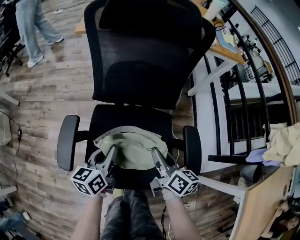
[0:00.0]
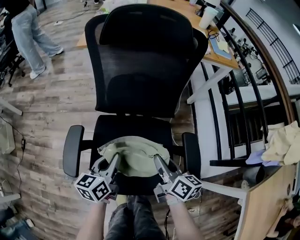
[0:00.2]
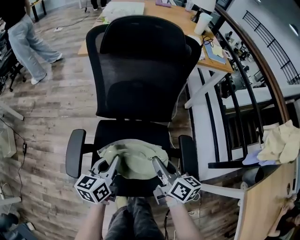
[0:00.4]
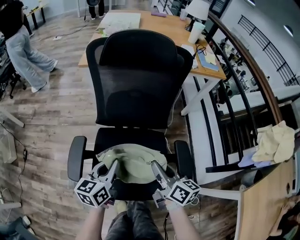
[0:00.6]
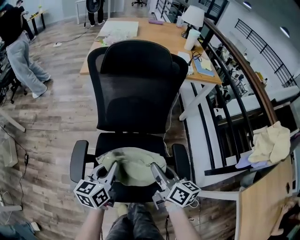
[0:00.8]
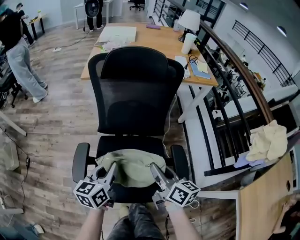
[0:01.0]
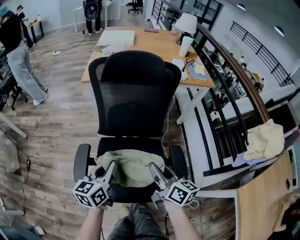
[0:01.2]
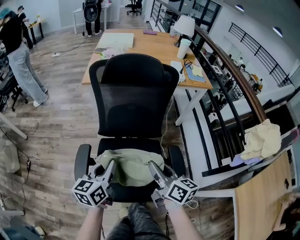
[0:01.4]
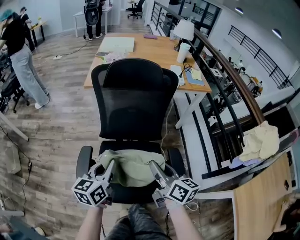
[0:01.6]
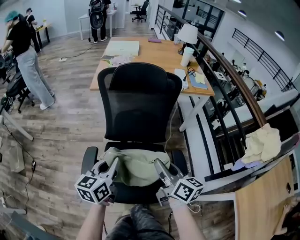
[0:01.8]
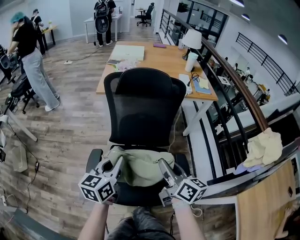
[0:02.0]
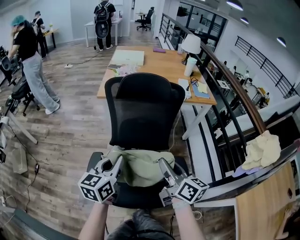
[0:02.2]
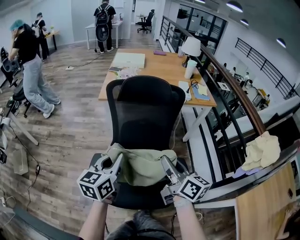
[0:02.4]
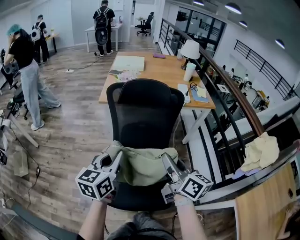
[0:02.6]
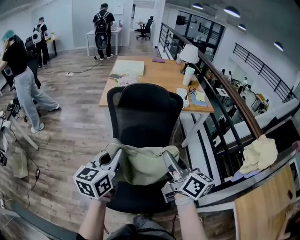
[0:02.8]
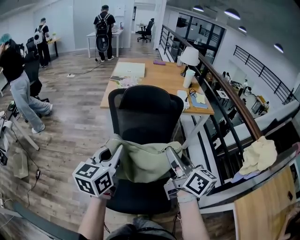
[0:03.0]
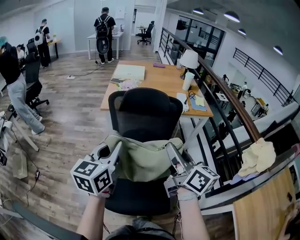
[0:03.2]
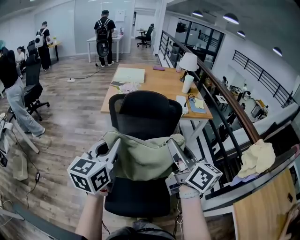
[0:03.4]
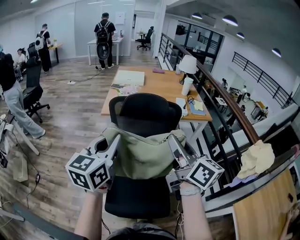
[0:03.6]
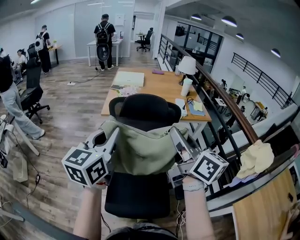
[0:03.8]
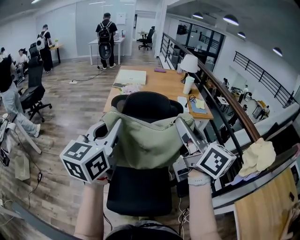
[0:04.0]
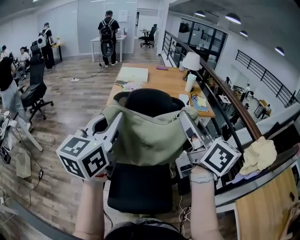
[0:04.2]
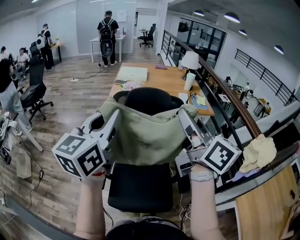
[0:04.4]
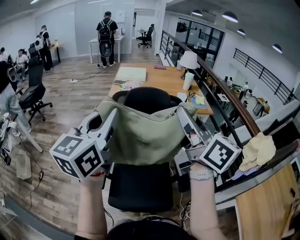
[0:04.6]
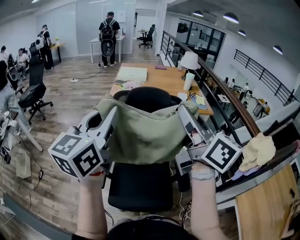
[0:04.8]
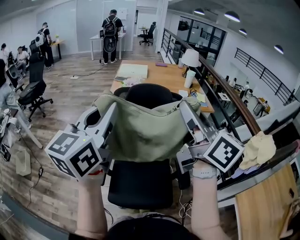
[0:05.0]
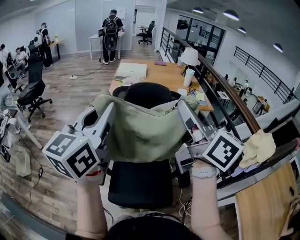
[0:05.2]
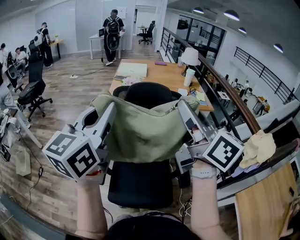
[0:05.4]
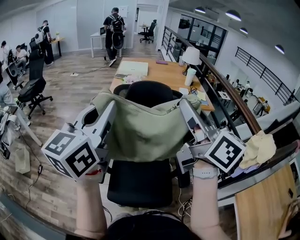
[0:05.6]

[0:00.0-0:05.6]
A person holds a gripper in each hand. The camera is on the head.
0:00.0 to 0:01.4: The two grippers go some 20 cm upward.
0:01.4 to 0:02.8: Both grippers move upward, about 15 cm.
0:02.8 to 0:04.2: Both grippers travel together upward, approximately 20 cm.
0:04.2 to 0:05.6: The grippers stay close to where they were, moving slightly.

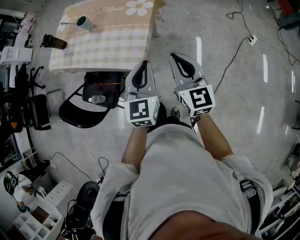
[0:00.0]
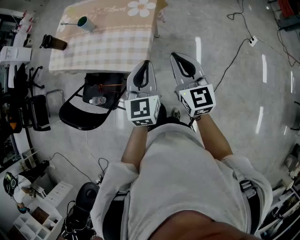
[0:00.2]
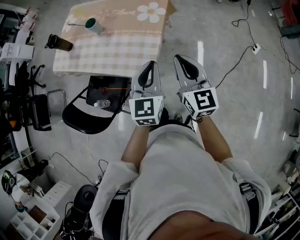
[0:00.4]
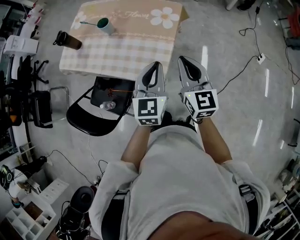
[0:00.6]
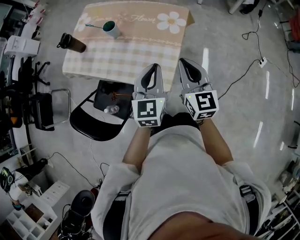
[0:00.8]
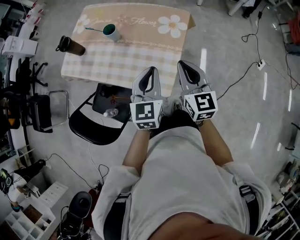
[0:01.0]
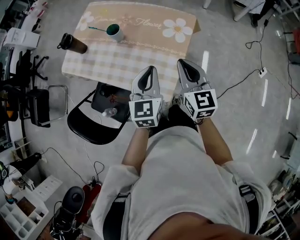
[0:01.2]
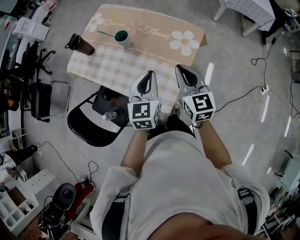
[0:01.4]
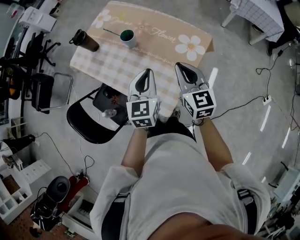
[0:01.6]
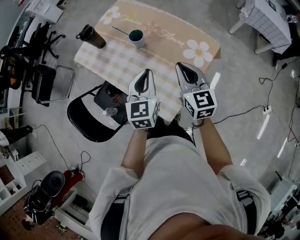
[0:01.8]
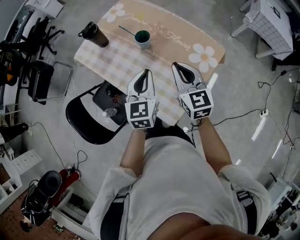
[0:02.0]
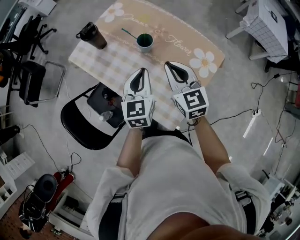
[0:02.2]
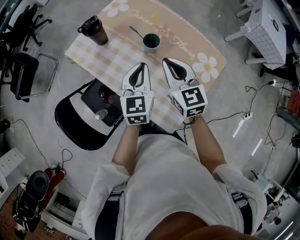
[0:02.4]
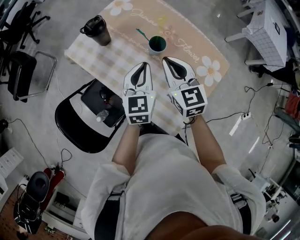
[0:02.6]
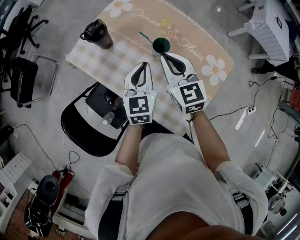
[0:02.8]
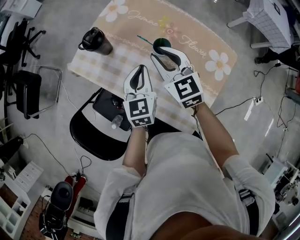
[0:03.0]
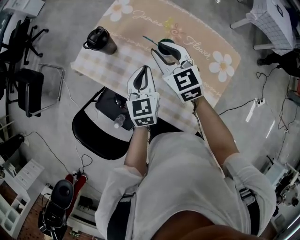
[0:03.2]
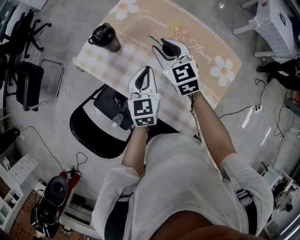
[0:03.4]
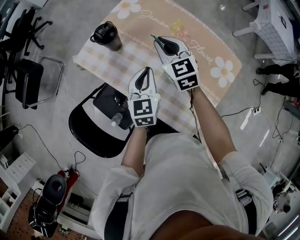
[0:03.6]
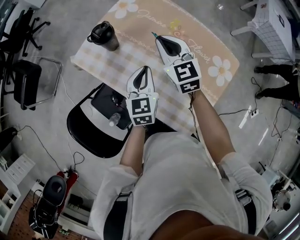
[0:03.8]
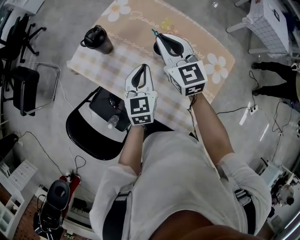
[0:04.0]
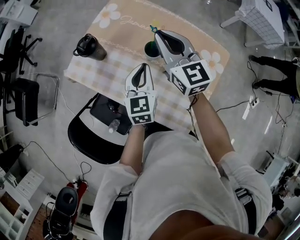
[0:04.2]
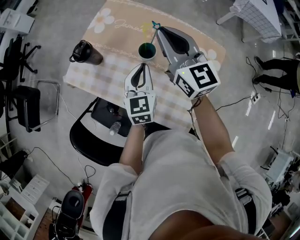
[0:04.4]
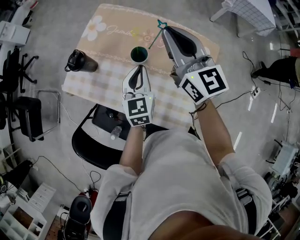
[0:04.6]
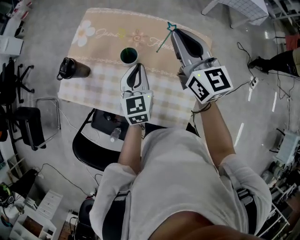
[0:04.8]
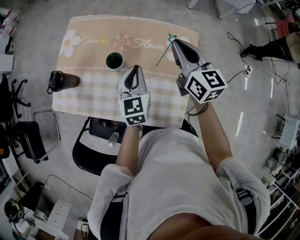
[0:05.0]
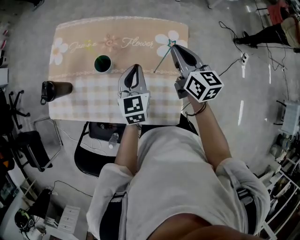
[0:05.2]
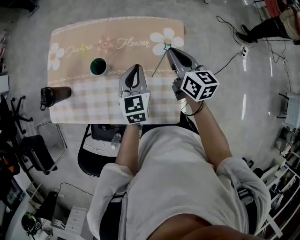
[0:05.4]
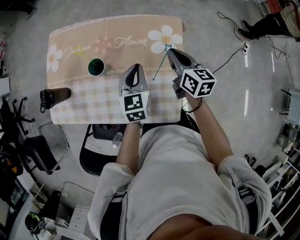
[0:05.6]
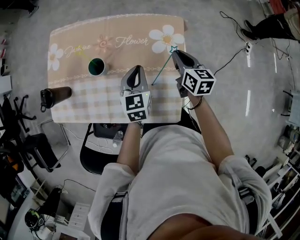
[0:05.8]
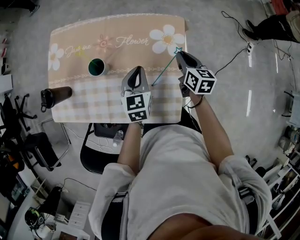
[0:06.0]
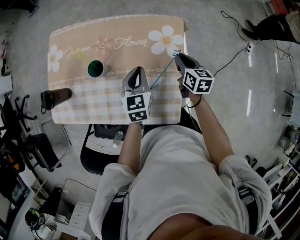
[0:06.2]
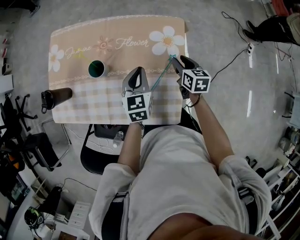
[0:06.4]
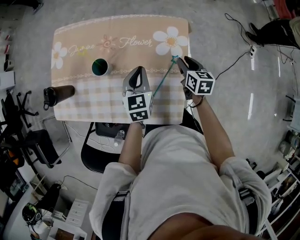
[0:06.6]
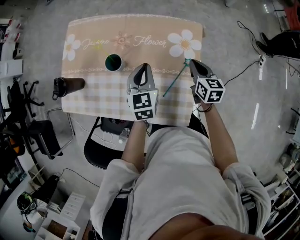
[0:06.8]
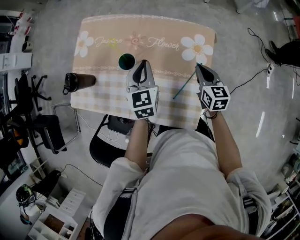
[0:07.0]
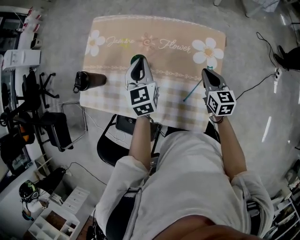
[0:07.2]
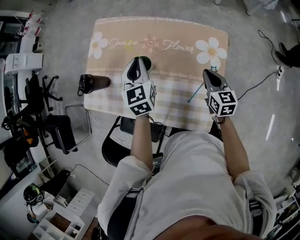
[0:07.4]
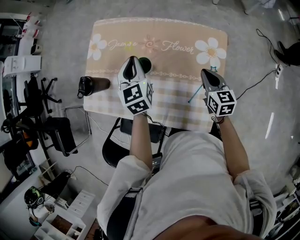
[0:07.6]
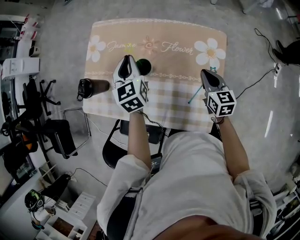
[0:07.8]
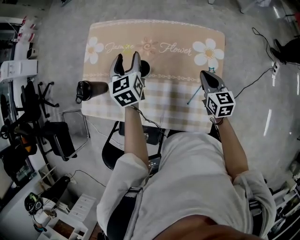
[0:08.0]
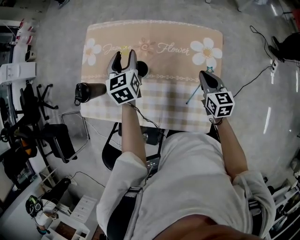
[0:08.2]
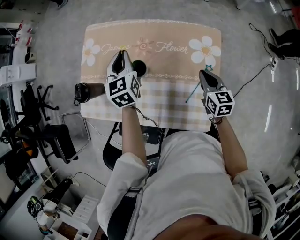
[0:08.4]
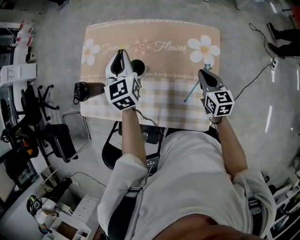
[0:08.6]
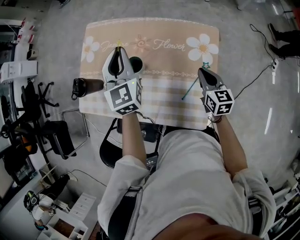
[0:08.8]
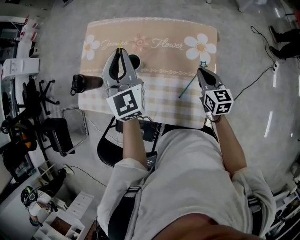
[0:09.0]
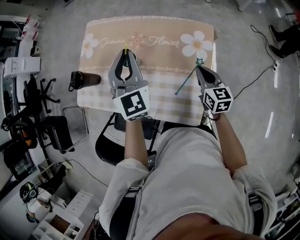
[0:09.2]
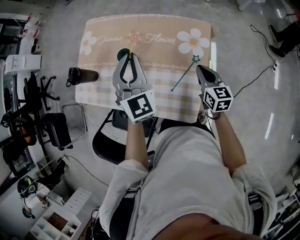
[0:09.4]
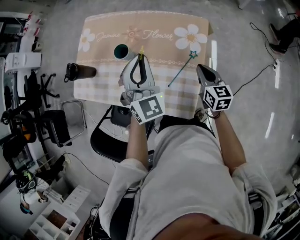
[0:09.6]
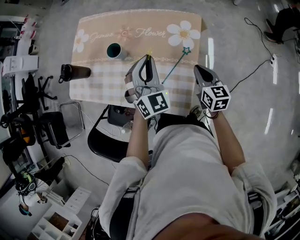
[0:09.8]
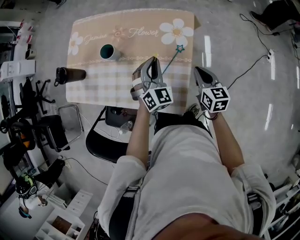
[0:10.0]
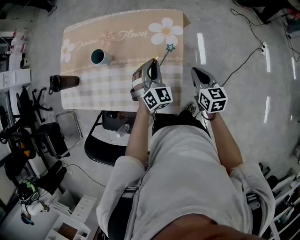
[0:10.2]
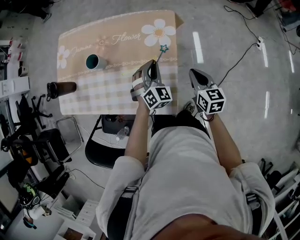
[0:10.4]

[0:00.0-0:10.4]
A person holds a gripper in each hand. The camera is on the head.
0:00.0 to 0:01.4: The grippers both shift forward and to the left by some 25 cm.
0:01.4 to 0:03.0: The two grippers go about 35 cm forward and to the left. The right gripper turns by approximately 20 degrees, and opens its fingers.
0:03.0 to 0:04.4: The left gripper heads to the right, covering some 5 cm. The right gripper moves upward and to the right, about 15 cm, and swivels approximately 30 degrees.
0:04.4 to 0:06.0: The right gripper moves some 40 cm, and tips its fingers downward by roughly 30 degrees, while the left gripper moves roughly 20 cm, and turns by approximately 30 degrees.
0:06.0 to 0:07.4: The left gripper goes roughly 20 cm to the left, forward and upward, and swivels some 20 degrees. The right gripper is displaced to the left by some 10 cm, and opens, then closes again.
0:07.4 to 0:09.0: The left gripper travels upward by about 10 cm, rotates about 20 degrees, and opens and closes again.
0:09.0 to 0:10.4: The left gripper is displaced to the right, downward and backward by about 35 cm, and turns by about 40 degrees; the right gripper shifts some 20 cm backward and to the right.

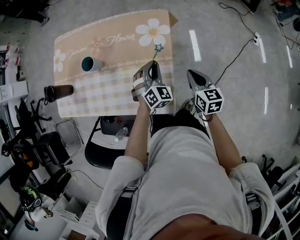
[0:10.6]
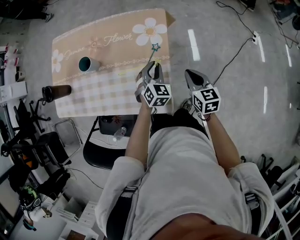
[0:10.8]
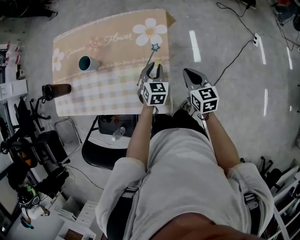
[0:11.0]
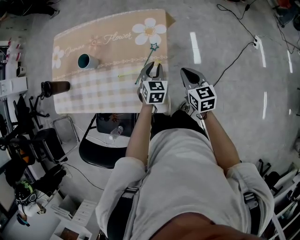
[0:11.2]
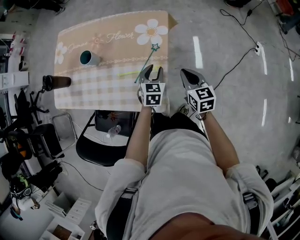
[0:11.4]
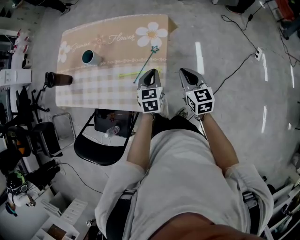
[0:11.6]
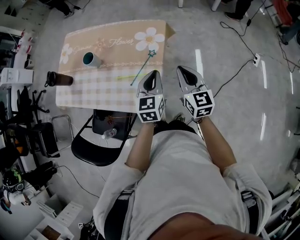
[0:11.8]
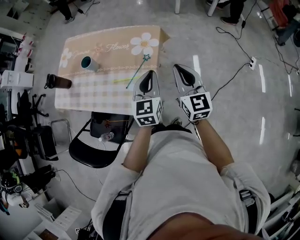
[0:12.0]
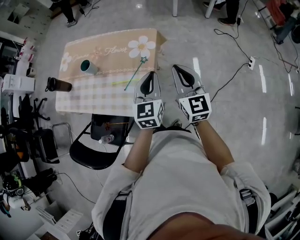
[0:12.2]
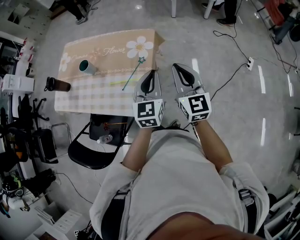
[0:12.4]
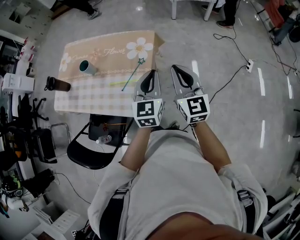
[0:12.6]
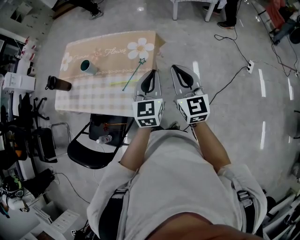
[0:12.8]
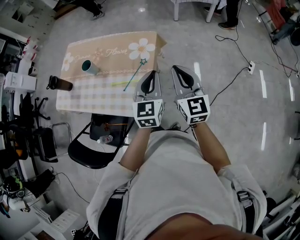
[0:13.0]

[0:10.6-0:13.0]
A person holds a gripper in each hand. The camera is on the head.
0:10.6 to 0:11.8: The left gripper is displaced upward, backward and to the right by some 15 cm, rotates around the line of its fingers by roughly 50 degrees, counterclockwise from behind, and opens, then closes again. The right gripper travels upward by about 10 cm, and turns by some 20 degrees.
0:11.8 to 0:13.0: The right gripper goes approximately 10 cm upward. The left gripper goes some 10 cm upward and to the right.

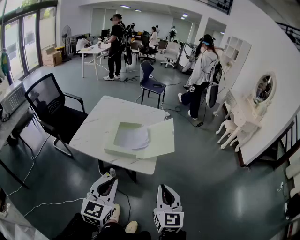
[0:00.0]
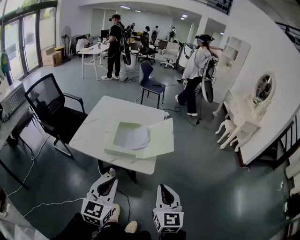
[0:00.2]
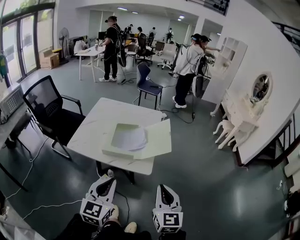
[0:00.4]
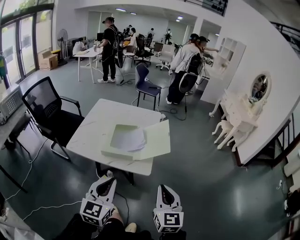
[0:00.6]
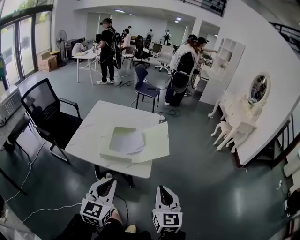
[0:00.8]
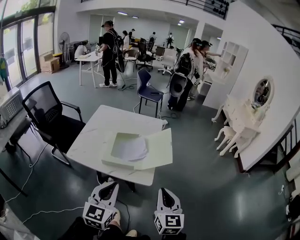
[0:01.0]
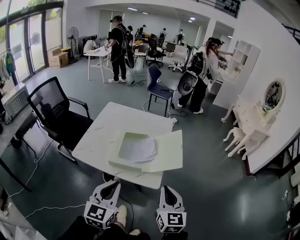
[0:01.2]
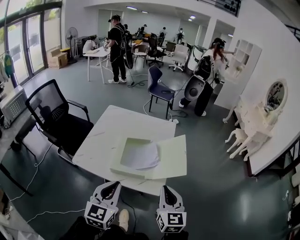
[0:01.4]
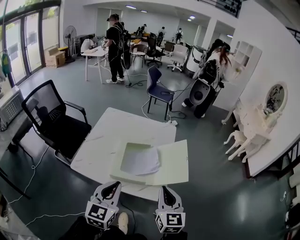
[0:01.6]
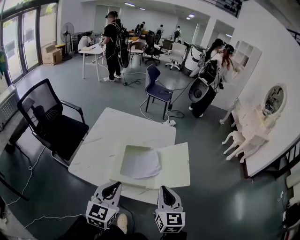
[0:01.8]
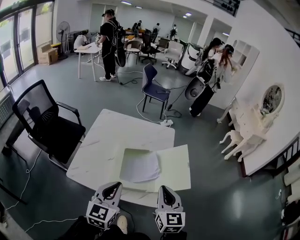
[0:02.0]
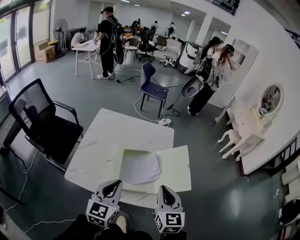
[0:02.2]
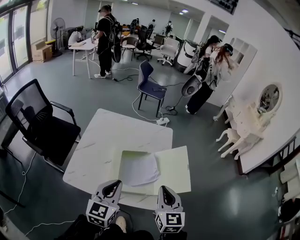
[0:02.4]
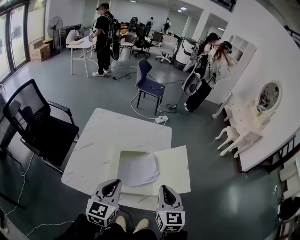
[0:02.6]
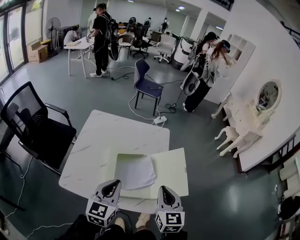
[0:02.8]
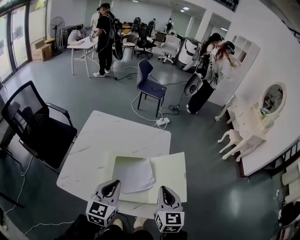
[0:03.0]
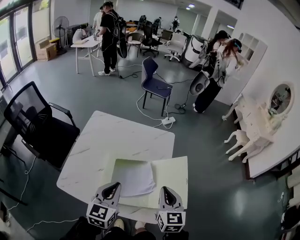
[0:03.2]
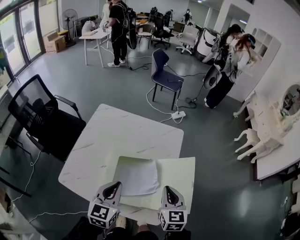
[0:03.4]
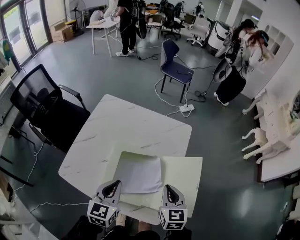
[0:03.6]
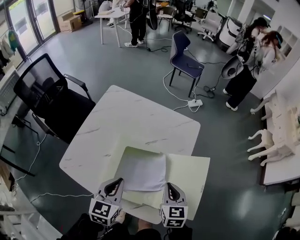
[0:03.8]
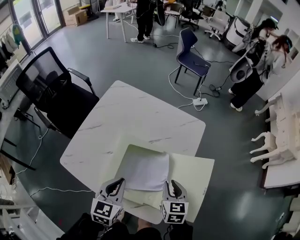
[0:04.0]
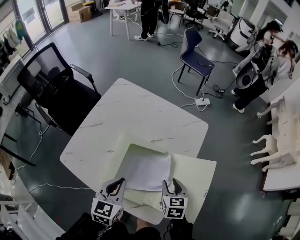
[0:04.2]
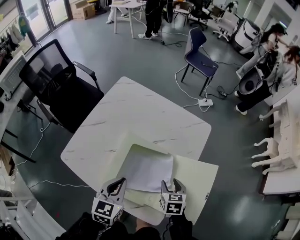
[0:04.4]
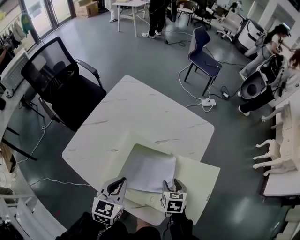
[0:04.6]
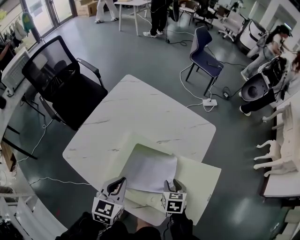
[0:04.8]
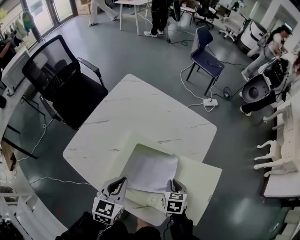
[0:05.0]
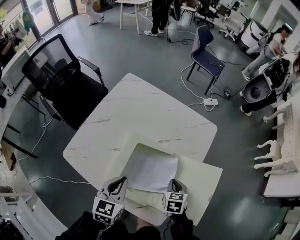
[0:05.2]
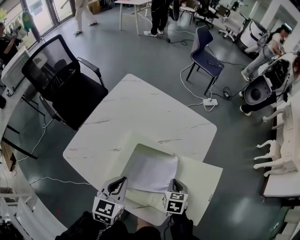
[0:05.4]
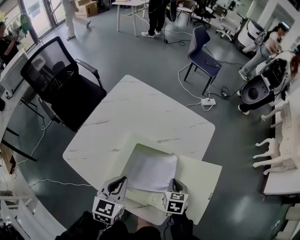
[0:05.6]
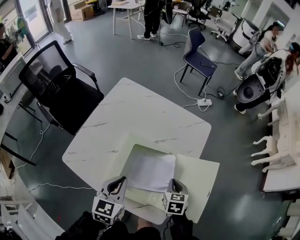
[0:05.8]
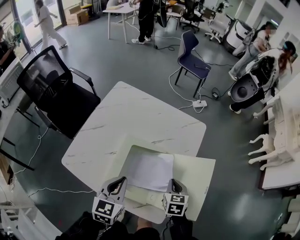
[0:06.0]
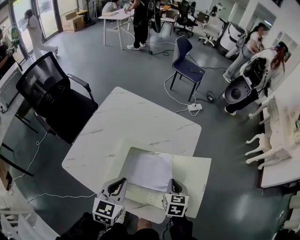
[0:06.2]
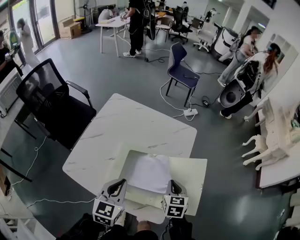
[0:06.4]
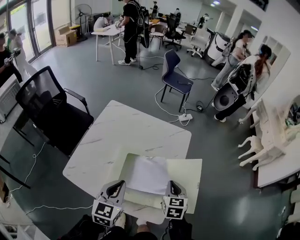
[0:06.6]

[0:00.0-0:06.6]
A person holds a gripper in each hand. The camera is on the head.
0:00.0 to 0:01.6: Both grippers travel together forward and to the left, about 25 cm.
0:01.6 to 0:03.2: Both grippers travel together forward, approximately 25 cm.
0:03.2 to 0:05.0: The left gripper travels downward and forward by approximately 15 cm, and swivels roughly 20 degrees. Meanwhile the right gripper heads downward and forward, covering about 30 cm, tilts its fingers about 40 degrees downward, and opens, then closes again.
0:05.0 to 0:06.6: The left gripper is displaced upward and backward by approximately 10 cm; the right gripper moves upward, some 15 cm, and rotates about 20 degrees.
